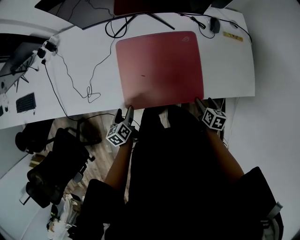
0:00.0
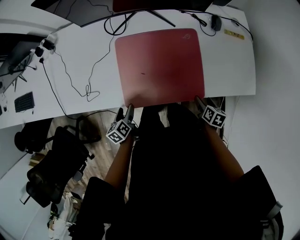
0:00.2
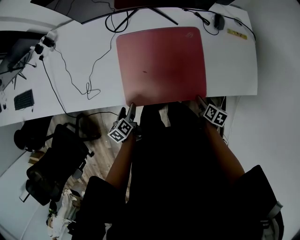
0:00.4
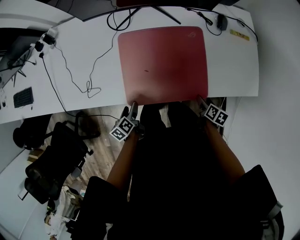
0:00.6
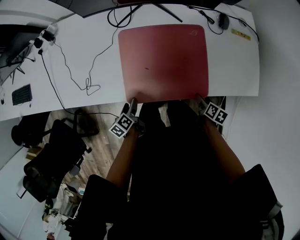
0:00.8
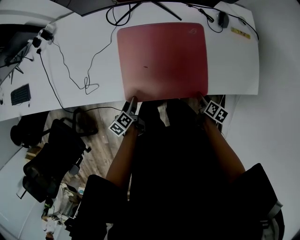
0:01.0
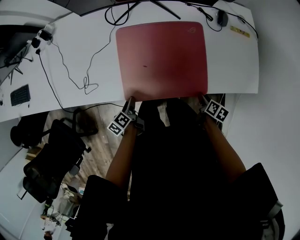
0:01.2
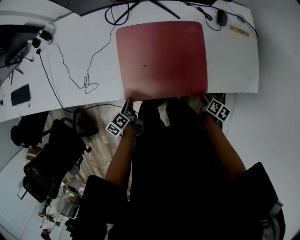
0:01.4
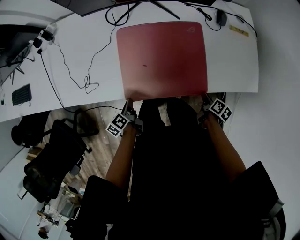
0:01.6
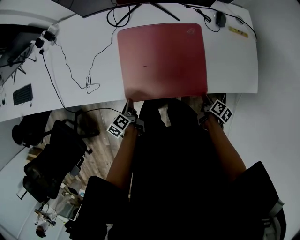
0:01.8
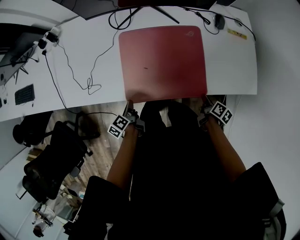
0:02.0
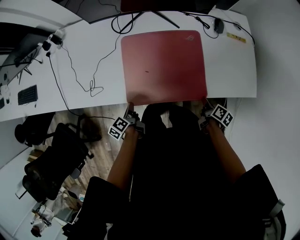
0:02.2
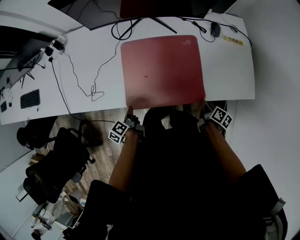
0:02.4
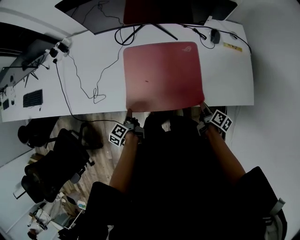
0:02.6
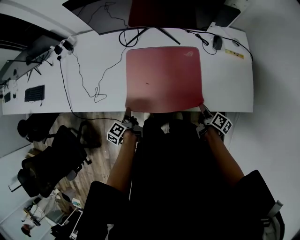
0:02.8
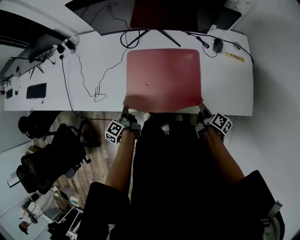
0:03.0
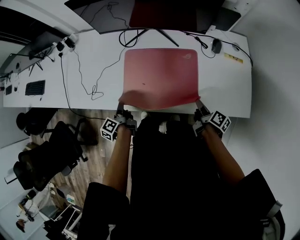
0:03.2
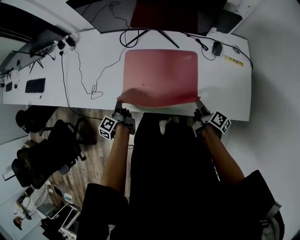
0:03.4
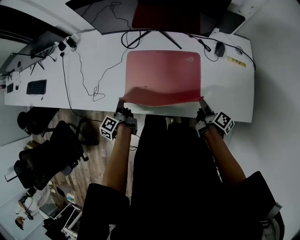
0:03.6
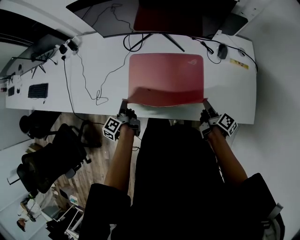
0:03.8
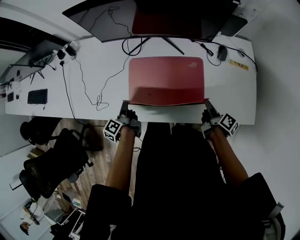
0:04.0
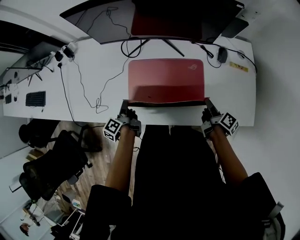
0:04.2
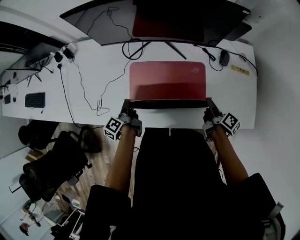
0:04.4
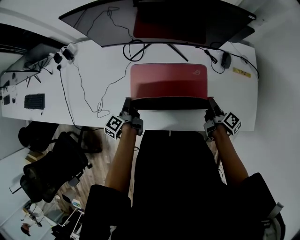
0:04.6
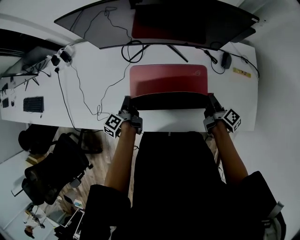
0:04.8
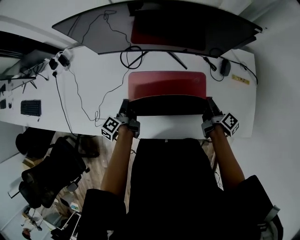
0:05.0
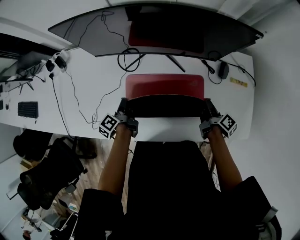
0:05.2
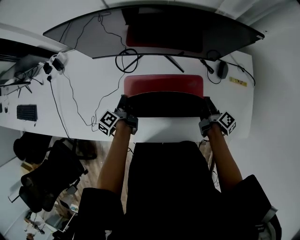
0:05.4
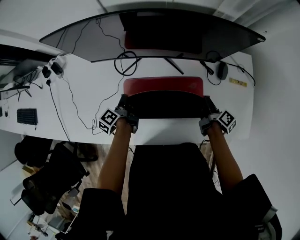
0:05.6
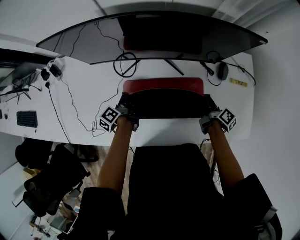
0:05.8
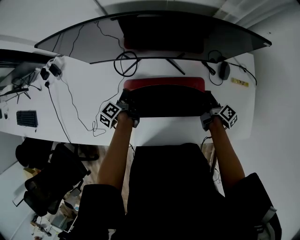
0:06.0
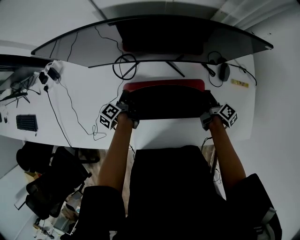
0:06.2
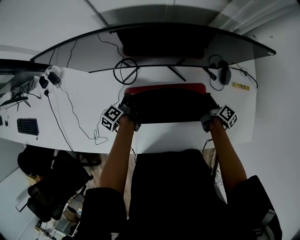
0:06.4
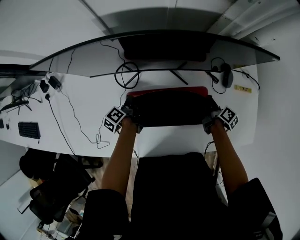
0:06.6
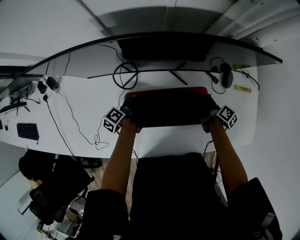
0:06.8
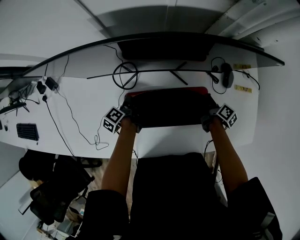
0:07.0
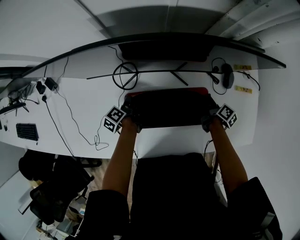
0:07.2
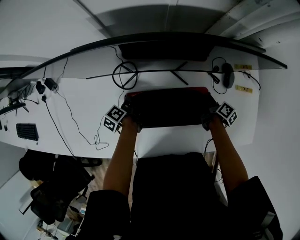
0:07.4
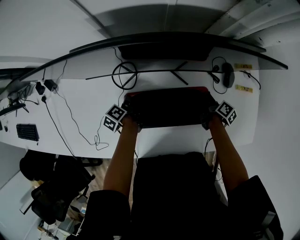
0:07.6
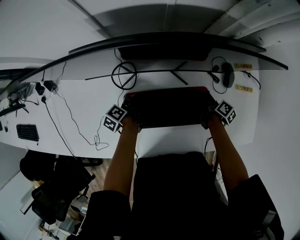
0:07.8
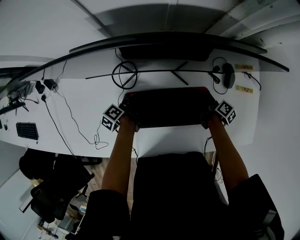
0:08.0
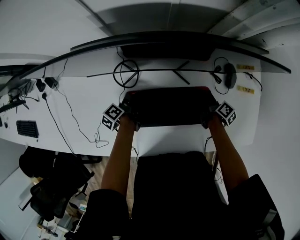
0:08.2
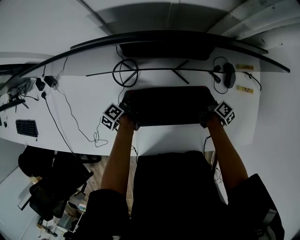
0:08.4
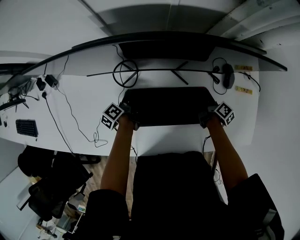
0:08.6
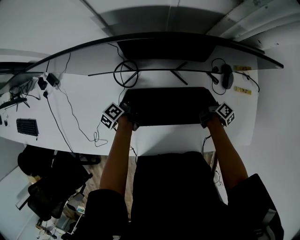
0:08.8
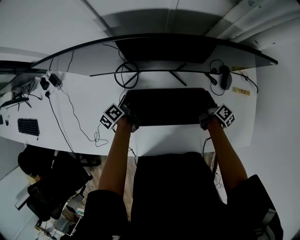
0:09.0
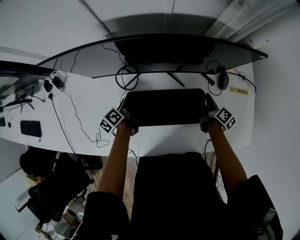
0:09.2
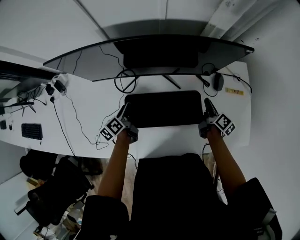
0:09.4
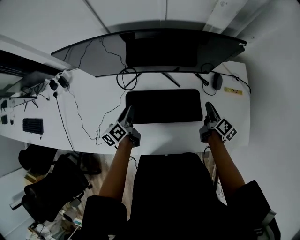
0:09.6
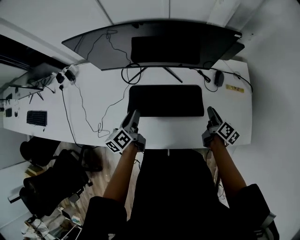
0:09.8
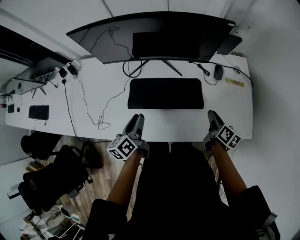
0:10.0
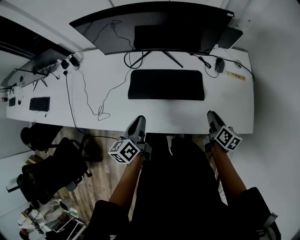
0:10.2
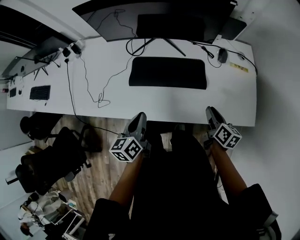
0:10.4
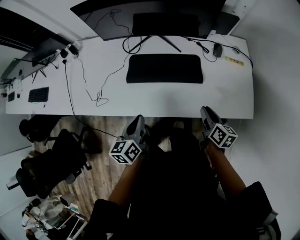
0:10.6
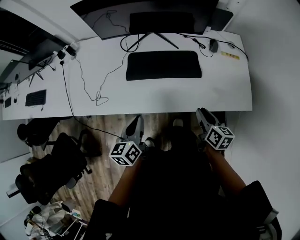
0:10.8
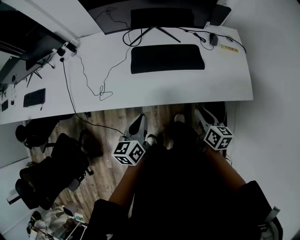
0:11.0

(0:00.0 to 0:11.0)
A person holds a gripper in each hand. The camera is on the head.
0:00.0 - 0:01.6: The left gripper changes its angle by some 30 degrees, and closes up, while the right gripper swivels about 30 degrees, and closes its fingers.
0:01.6 - 0:03.2: The left gripper is displaced upward by roughly 10 cm, and turns by about 30 degrees. Meanwhile the right gripper shifts some 15 cm upward and forward, and swivels about 30 degrees.
0:03.2 - 0:04.8: The two grippers go roughly 15 cm forward.
0:04.8 - 0:06.2: Both grippers move forward, about 10 cm.
0:06.2 - 0:07.8: The left gripper moves approximately 5 cm, while the right gripper goes about 5 cm downward.
0:07.8 - 0:09.4: The two grippers go approximately 10 cm upward. The left gripper changes its angle by some 20 degrees, and opens its fingers.
0:09.4 - 0:11.0: The two grippers go about 40 cm backward. The right gripper changes its angle by some 30 degrees, while the left gripper rotates roughly 30 degrees, and closes.

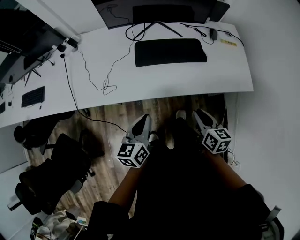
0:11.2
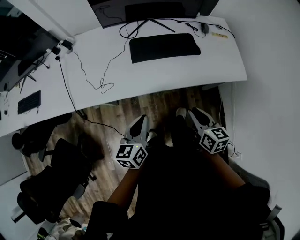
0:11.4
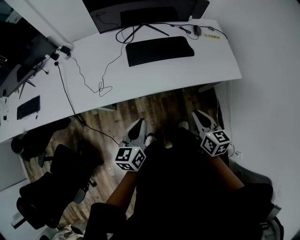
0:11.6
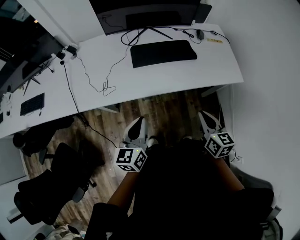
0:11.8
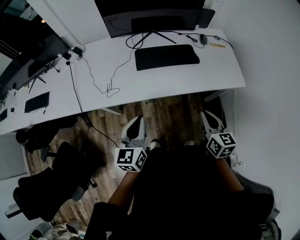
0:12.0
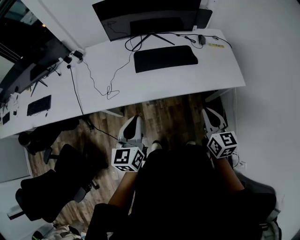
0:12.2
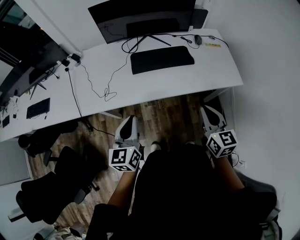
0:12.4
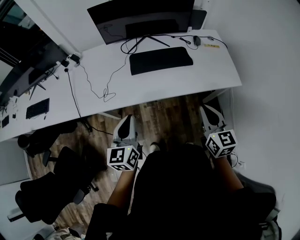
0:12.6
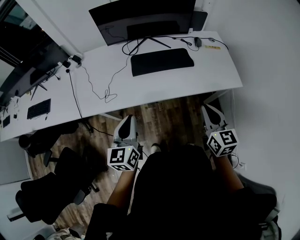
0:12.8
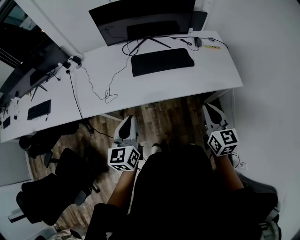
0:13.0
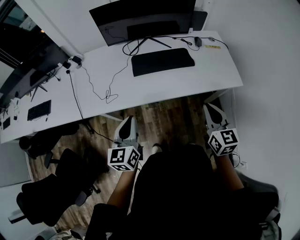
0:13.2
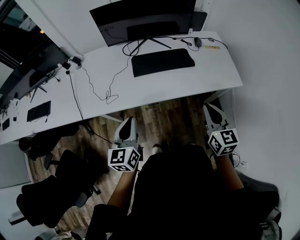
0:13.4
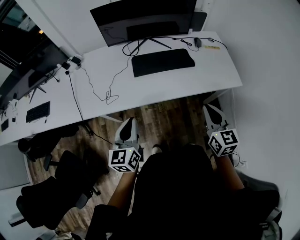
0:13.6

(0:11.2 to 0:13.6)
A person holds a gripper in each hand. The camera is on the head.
0:11.2 - 0:12.4: Both grippers travel together upward and backward, roughly 10 cm. The right gripper swivels roughly 20 degrees.
0:12.4 - 0:13.6: The grippers move only a little.

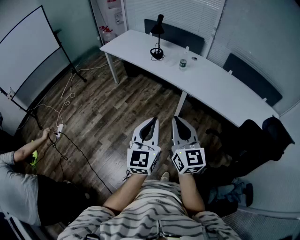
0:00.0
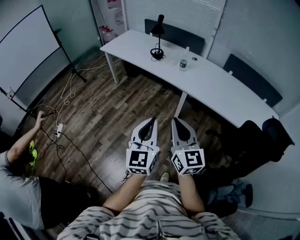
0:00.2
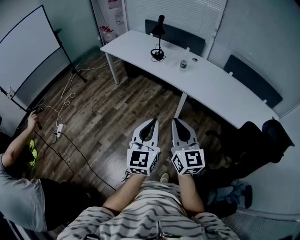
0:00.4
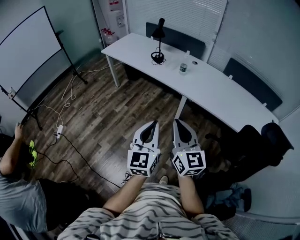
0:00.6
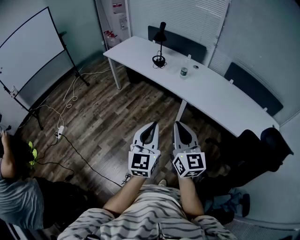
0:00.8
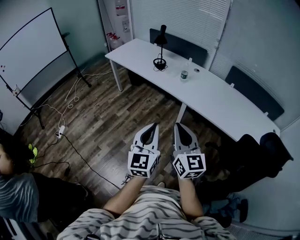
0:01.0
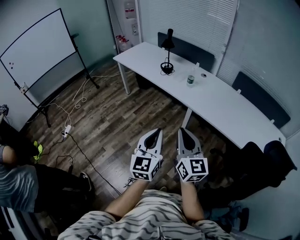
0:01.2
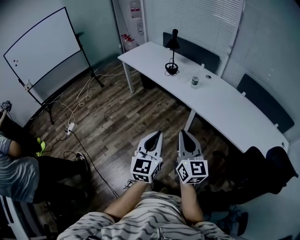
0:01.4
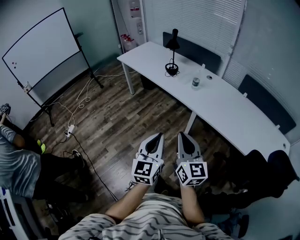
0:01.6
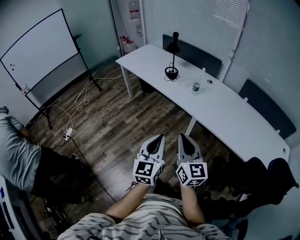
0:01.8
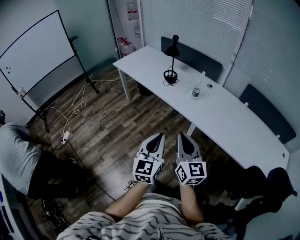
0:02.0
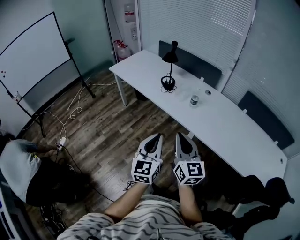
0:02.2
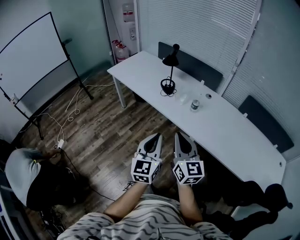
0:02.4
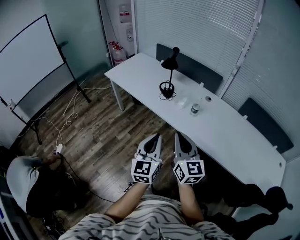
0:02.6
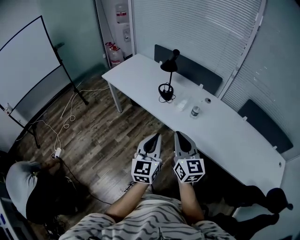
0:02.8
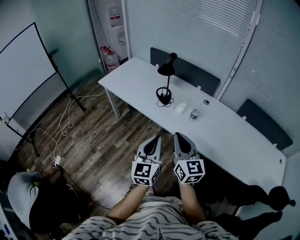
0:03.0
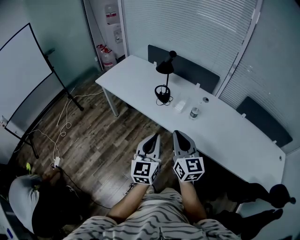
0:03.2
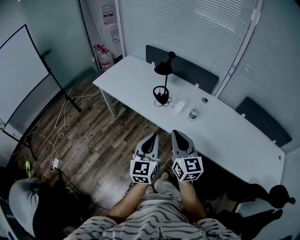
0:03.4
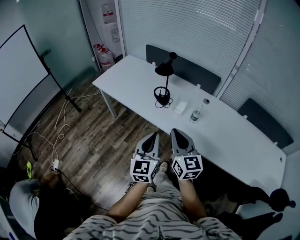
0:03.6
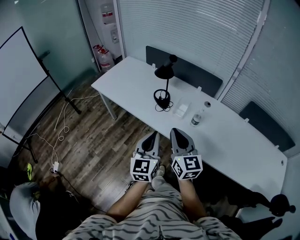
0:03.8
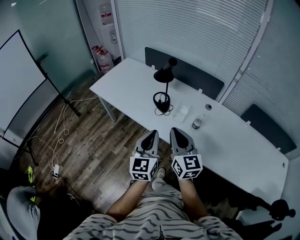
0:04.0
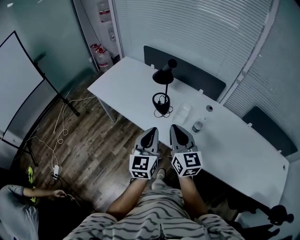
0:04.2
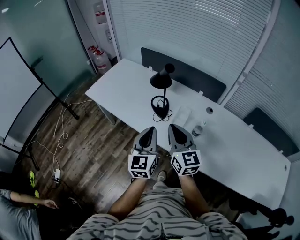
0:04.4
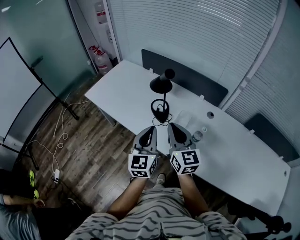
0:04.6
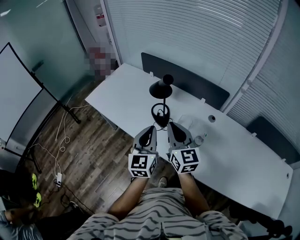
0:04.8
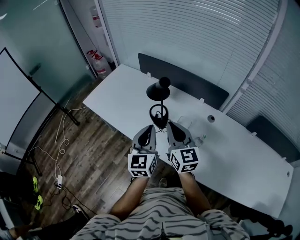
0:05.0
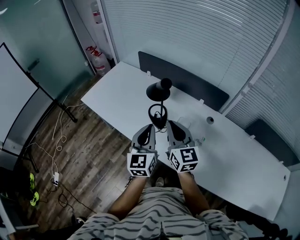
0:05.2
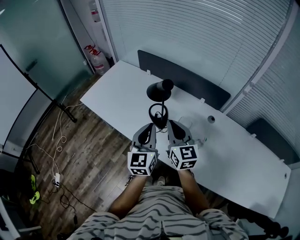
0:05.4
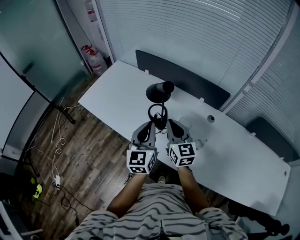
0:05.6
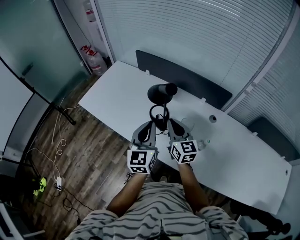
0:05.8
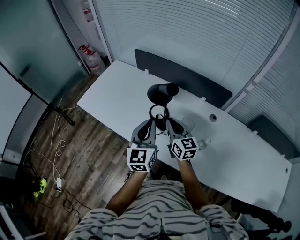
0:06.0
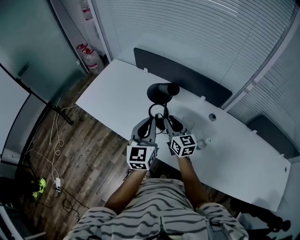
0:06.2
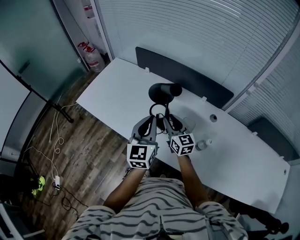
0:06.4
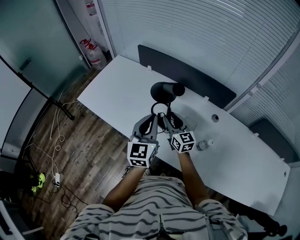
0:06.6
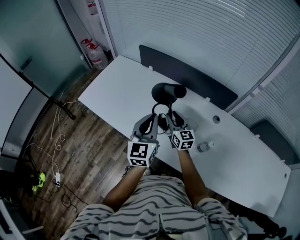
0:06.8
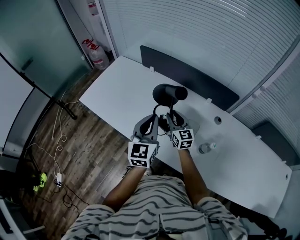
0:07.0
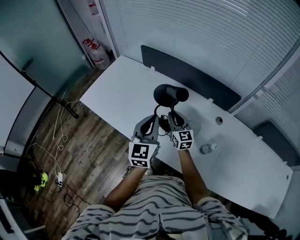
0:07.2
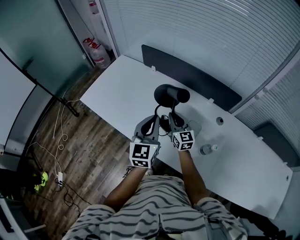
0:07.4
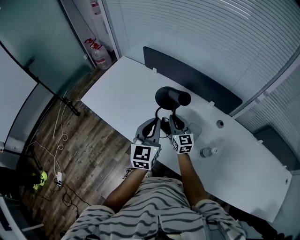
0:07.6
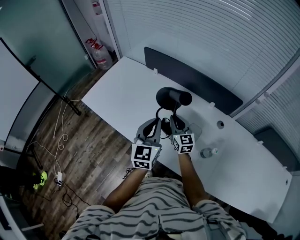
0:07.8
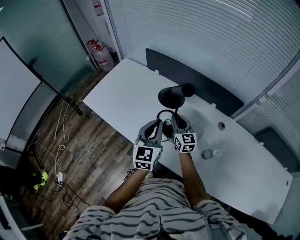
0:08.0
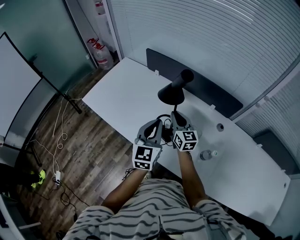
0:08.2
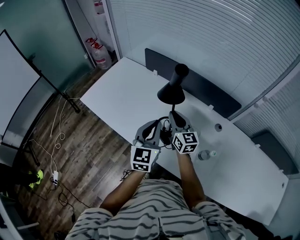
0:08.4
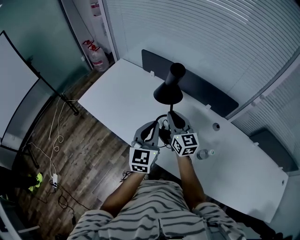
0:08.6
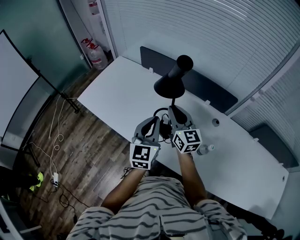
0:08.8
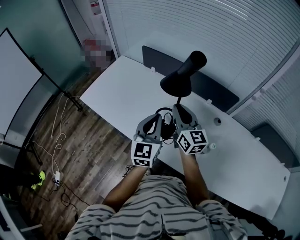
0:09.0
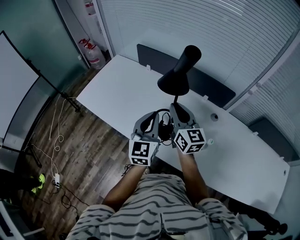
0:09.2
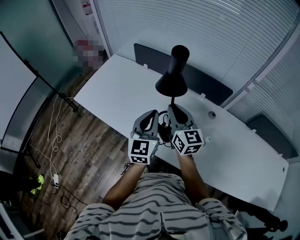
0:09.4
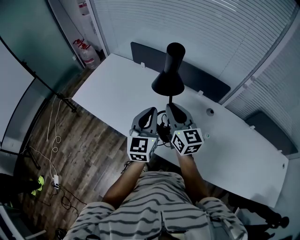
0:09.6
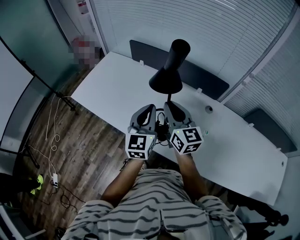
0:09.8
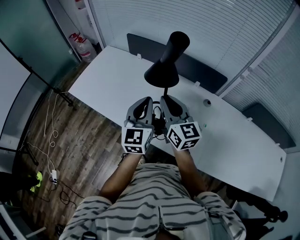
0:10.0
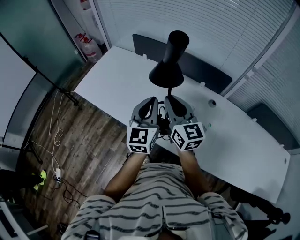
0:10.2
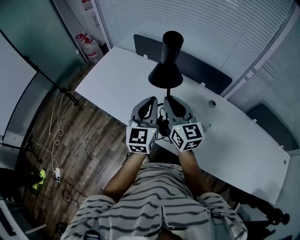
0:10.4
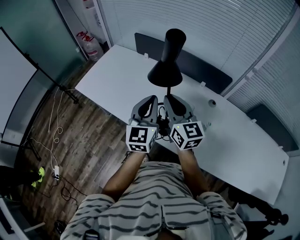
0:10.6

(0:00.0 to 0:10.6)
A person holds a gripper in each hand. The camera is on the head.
0:00.0 - 0:01.6: The grippers both shift forward and to the right by approximately 10 cm.
0:01.6 - 0:03.0: The two grippers go roughly 35 cm forward.
0:03.0 - 0:04.6: Both grippers travel together forward, some 30 cm.
0:04.6 - 0:06.0: The right gripper is displaced forward and downward by approximately 20 cm. The left gripper moves forward, approximately 15 cm.
0:06.0 - 0:07.6: The left gripper moves some 5 cm. The right gripper is displaced forward and downward by about 10 cm, and opens, then closes again.
0:07.6 - 0:09.0: The right gripper shifts approximately 15 cm upward.
0:09.0 - 0:10.6: The left gripper shifts by some 5 cm. The right gripper travels backward by roughly 10 cm.
